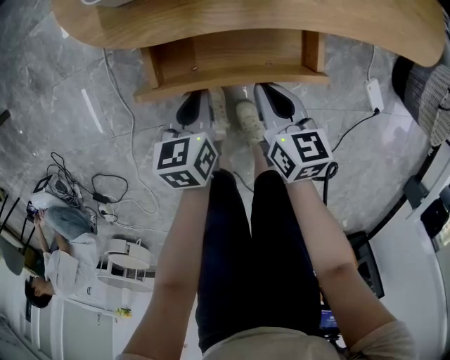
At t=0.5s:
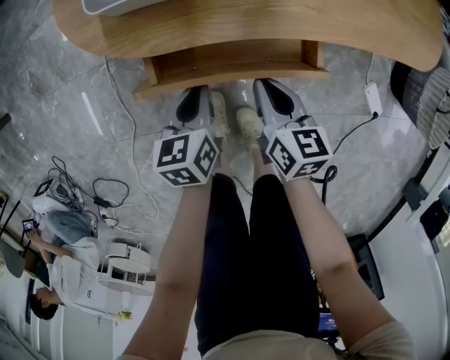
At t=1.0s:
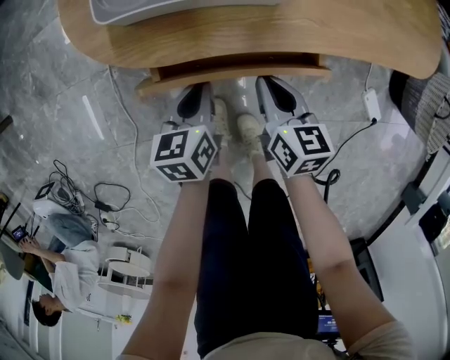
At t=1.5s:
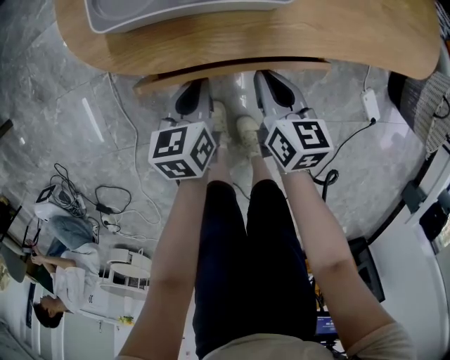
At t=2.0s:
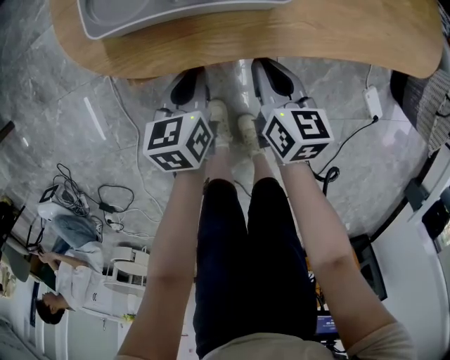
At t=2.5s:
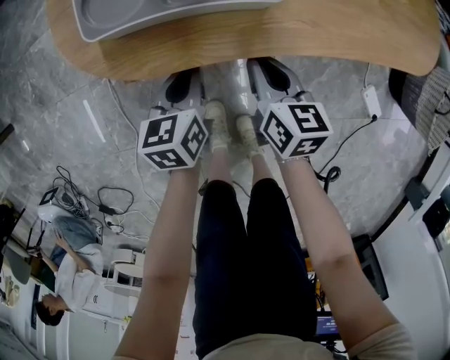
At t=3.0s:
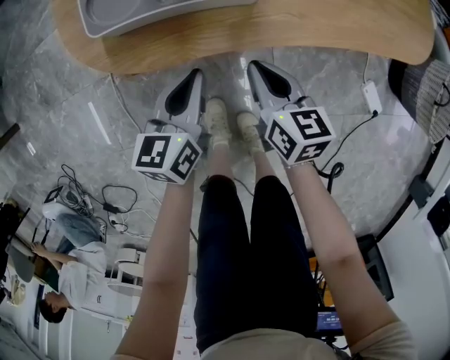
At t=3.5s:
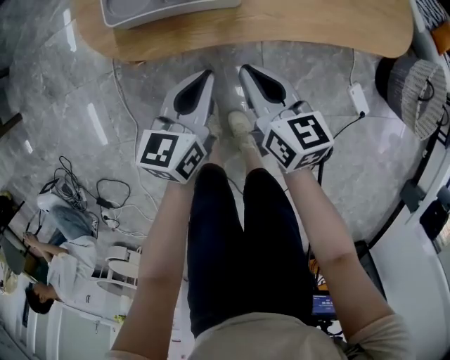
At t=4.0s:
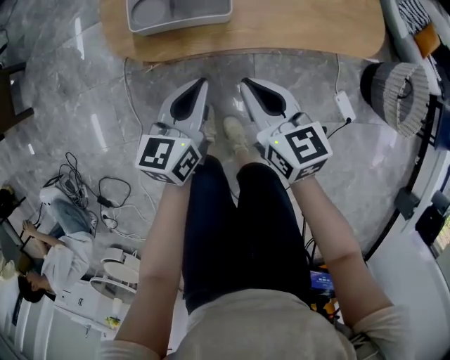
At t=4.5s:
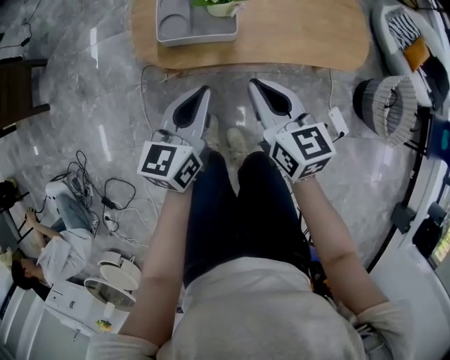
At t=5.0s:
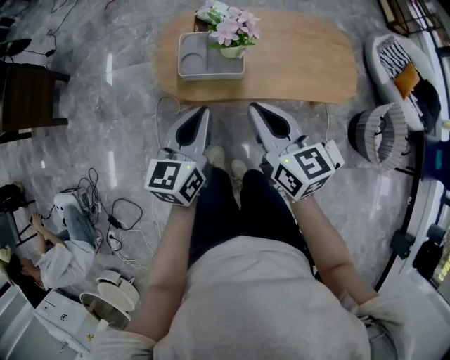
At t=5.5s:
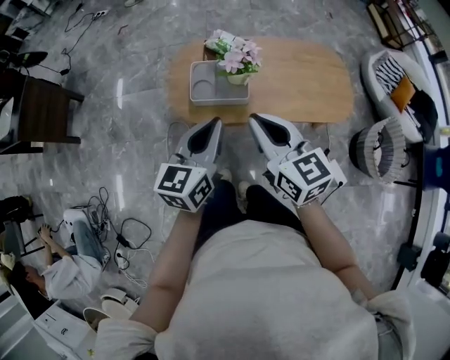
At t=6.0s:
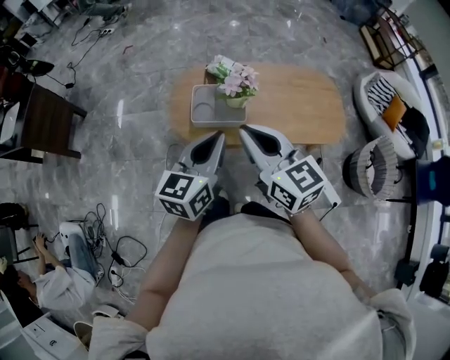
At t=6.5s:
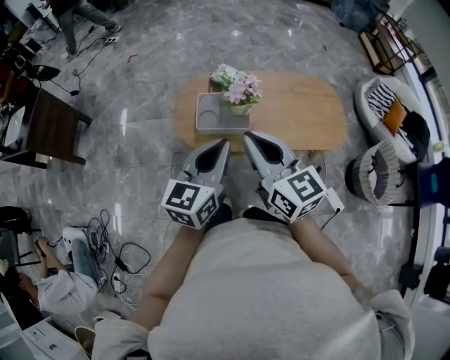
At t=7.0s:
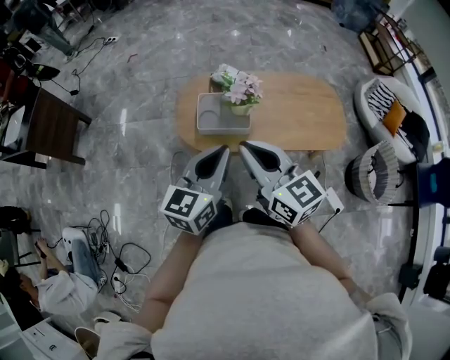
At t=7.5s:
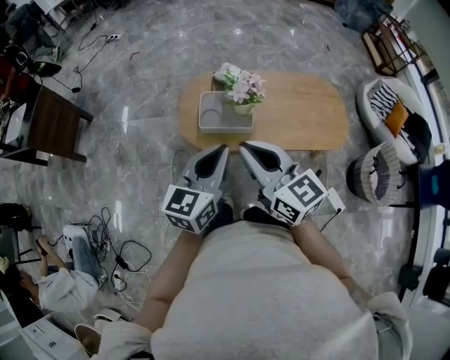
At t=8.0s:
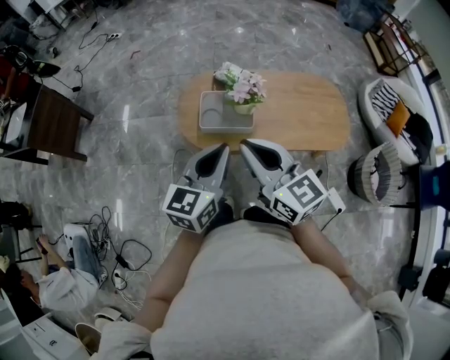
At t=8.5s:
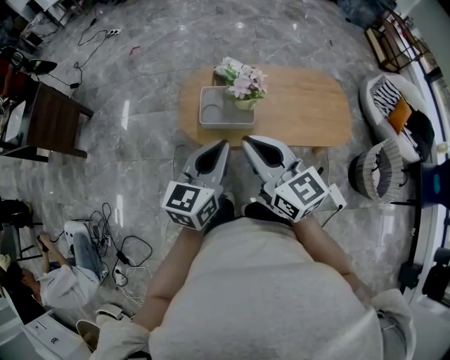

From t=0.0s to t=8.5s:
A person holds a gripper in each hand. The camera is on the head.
From t=0.0s to t=2.0s: The two grippers go about 10 cm forward.
From t=2.0s to t=4.0s: Both grippers move upward, some 25 cm. The left gripper swivels about 20 degrees; the right gripper changes its angle by approximately 20 degrees.
From t=4.0s to t=6.5s: Both grippers move upward, approximately 35 cm. The right gripper turns by some 30 degrees. The left gripper swivels approximately 20 degrees.
From t=6.5s to t=8.5s: The grippers make only small movements.

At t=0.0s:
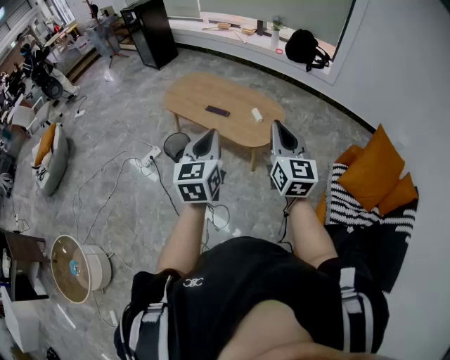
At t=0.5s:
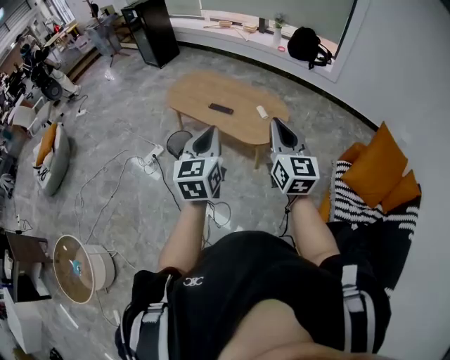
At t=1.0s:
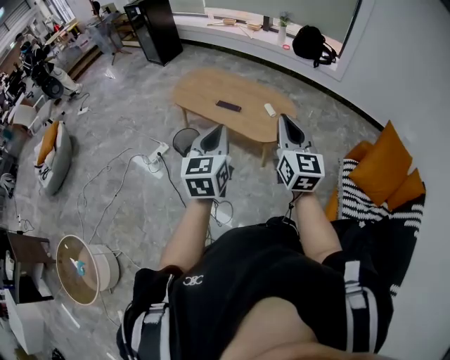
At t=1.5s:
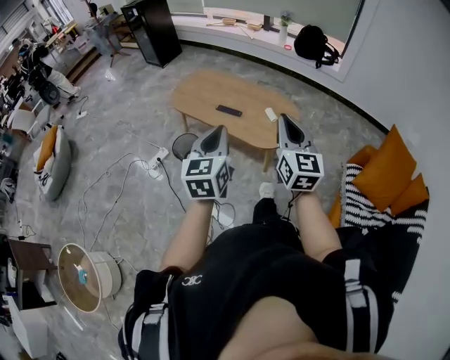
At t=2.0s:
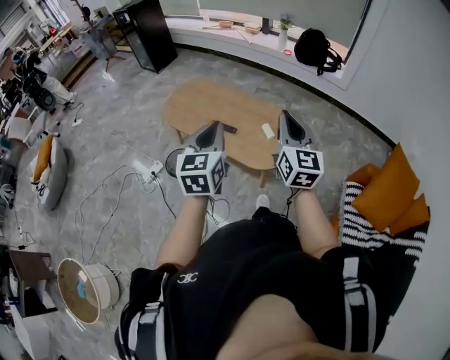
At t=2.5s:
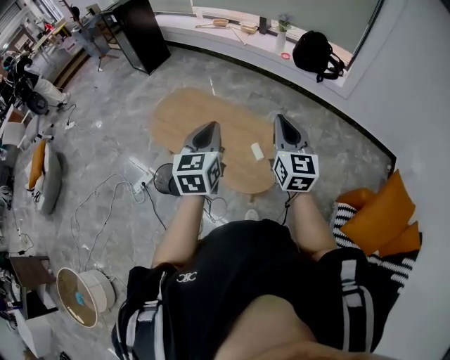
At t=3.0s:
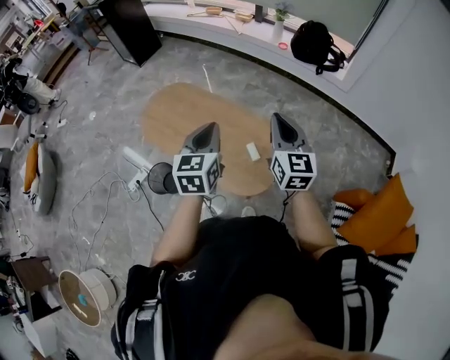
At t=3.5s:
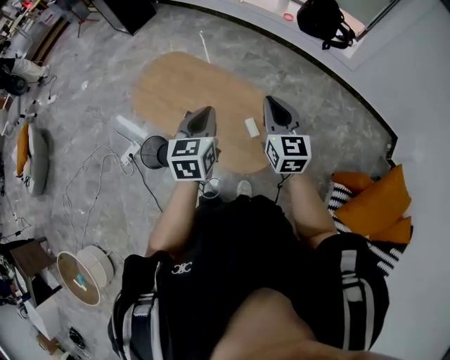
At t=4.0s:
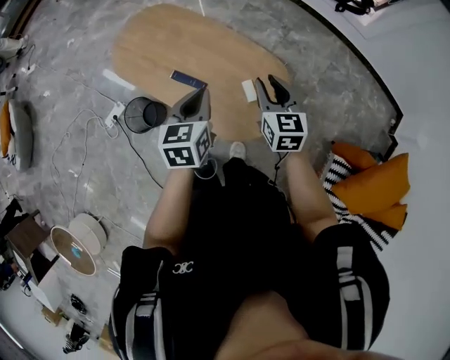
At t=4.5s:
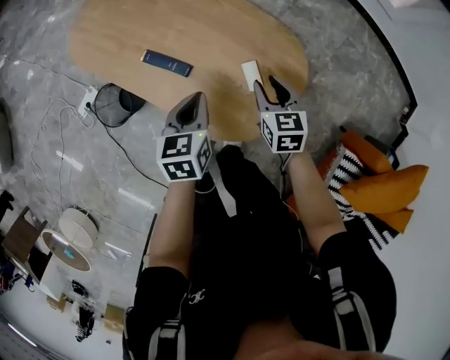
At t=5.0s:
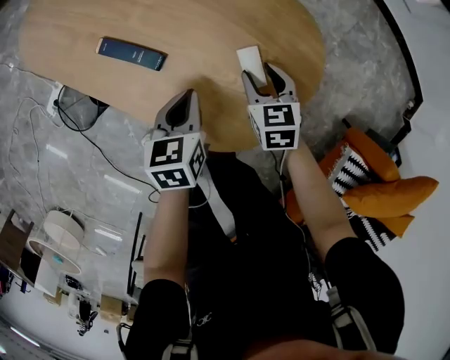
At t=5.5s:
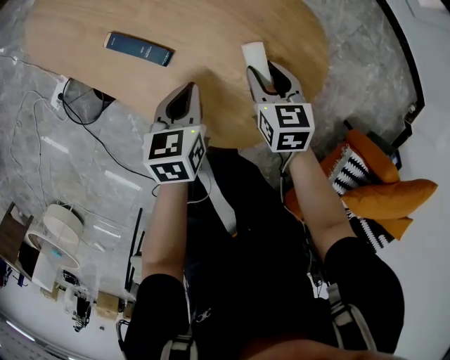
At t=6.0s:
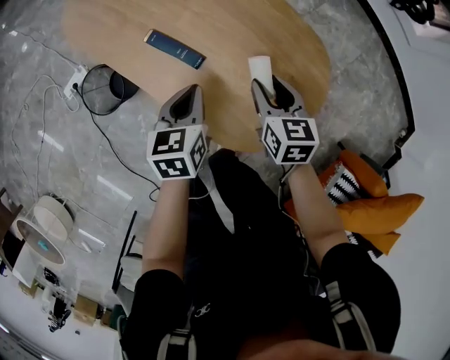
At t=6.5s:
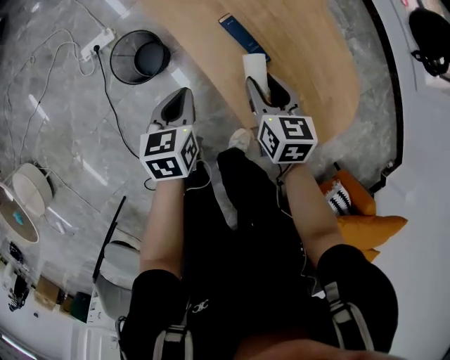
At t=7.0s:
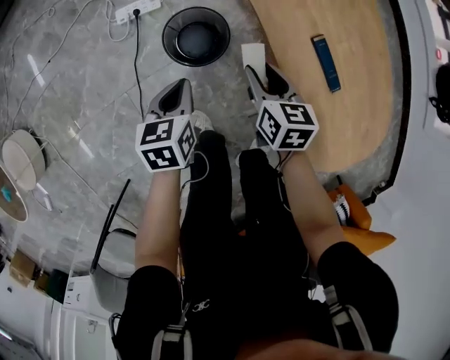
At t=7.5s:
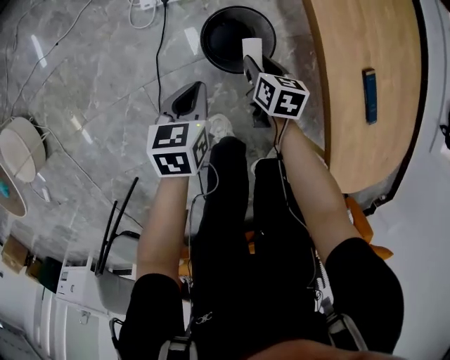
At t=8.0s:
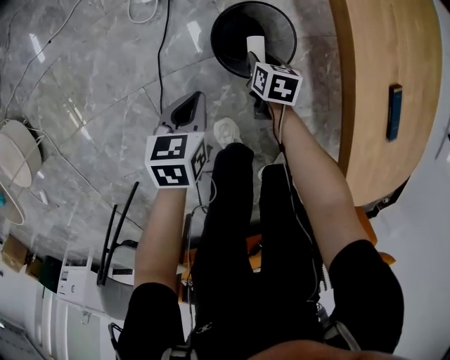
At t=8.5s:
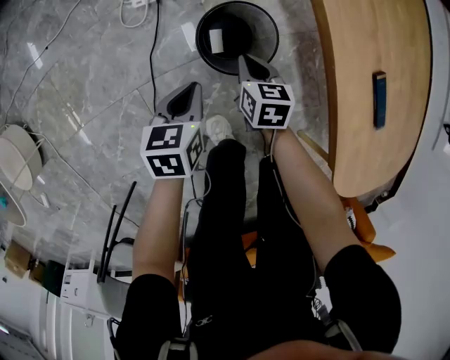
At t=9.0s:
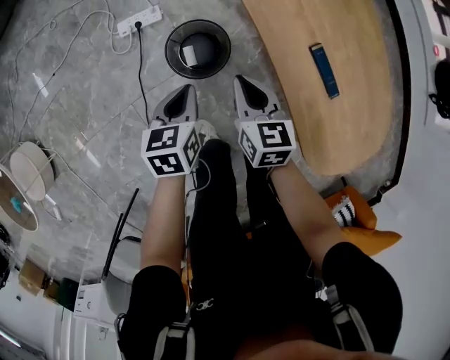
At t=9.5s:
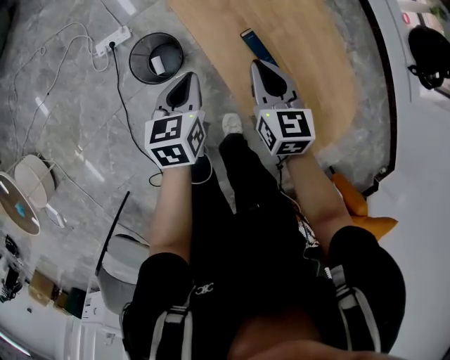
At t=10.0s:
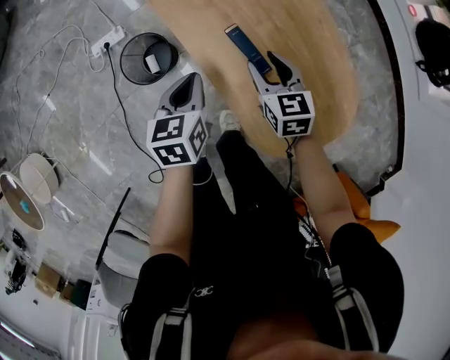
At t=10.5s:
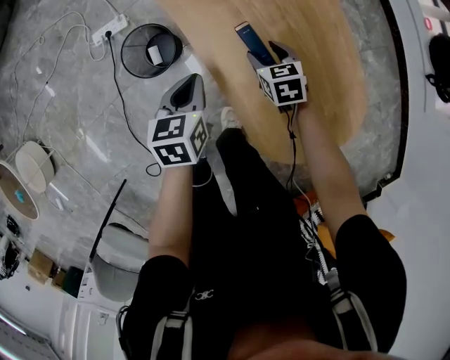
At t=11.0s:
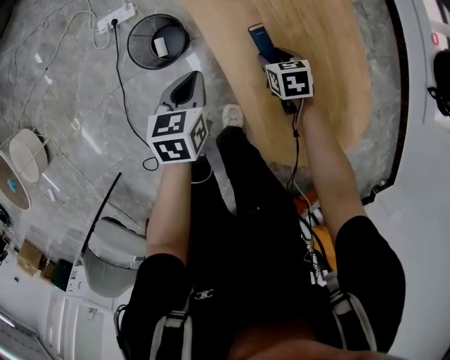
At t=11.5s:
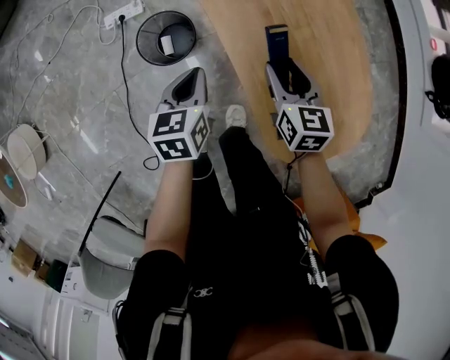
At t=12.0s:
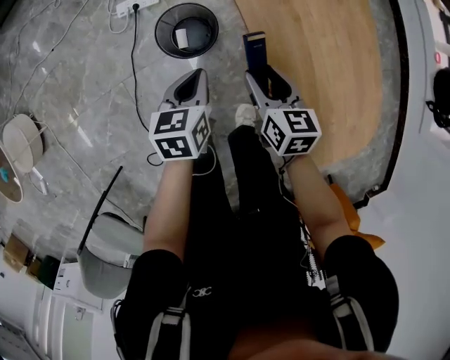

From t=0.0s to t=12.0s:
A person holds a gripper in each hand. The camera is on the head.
From t=0.0s to t=2.0s: Both grippers travel together forward, about 20 cm.
From t=2.0s to t=4.0s: Both grippers move forward and downward, some 40 cm. The left gripper turns by some 30 degrees, while the right gripper swivels some 30 degrees.
From t=4.0s to t=6.0s: The two grippers go about 30 cm downward.
From t=6.0s to t=8.0s: The pair of grippers is taken some 60 cm. The left gripper changes its angle by approximately 30 degrees. Meanwhile the right gripper changes its angle by about 30 degrees.
From t=8.0s to t=10.0s: Both grippers move to the right and upward, about 50 cm. The right gripper swivels approximately 30 degrees, and closes and opens again.
From t=10.0s to t=12.0s: Both grippers travel together to the left, some 15 cm.

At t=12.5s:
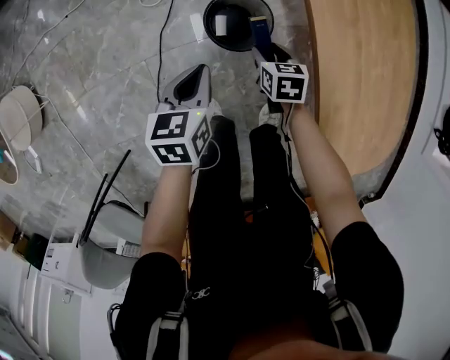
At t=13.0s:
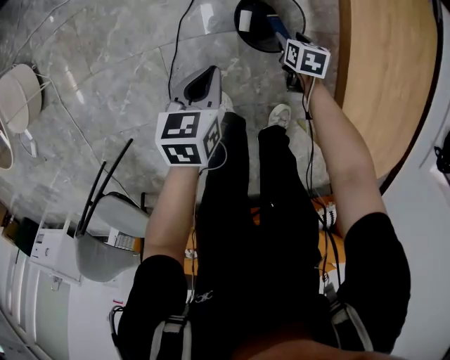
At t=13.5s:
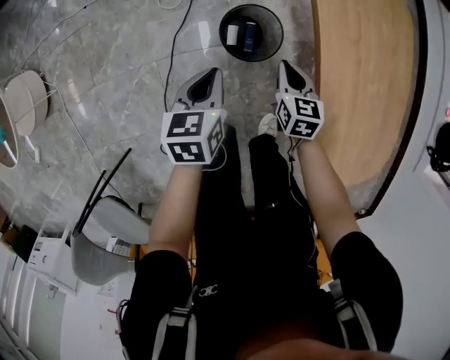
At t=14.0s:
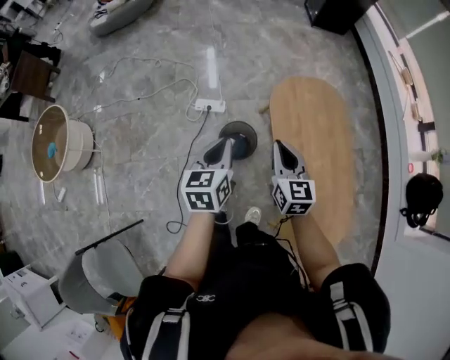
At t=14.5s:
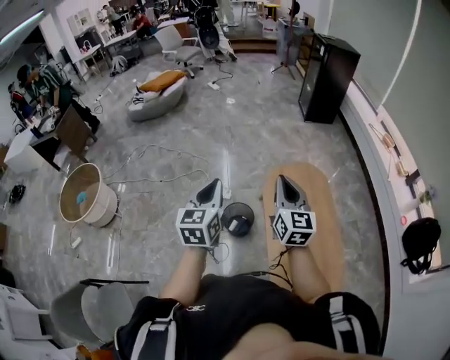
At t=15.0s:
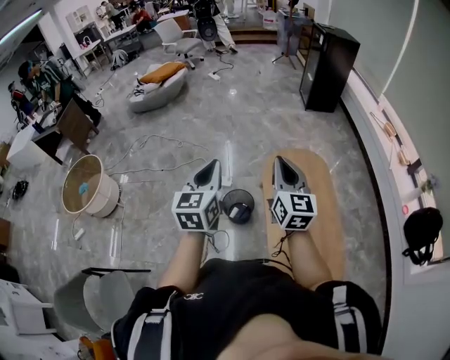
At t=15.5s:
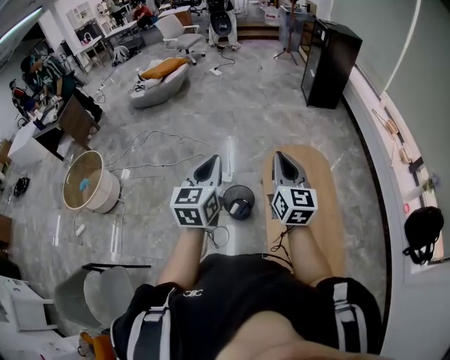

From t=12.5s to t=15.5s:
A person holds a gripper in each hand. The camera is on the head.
From t=12.5s to t=14.0s: Both grippers travel together upward, some 40 cm. The right gripper angles its fingers upward, by approximately 40 degrees, and closes; the left gripper changes its angle by some 20 degrees.
From t=14.0s to t=15.5s: Both grippers move upward, some 25 cm. The left gripper swivels some 30 degrees, while the right gripper changes its angle by roughly 20 degrees.

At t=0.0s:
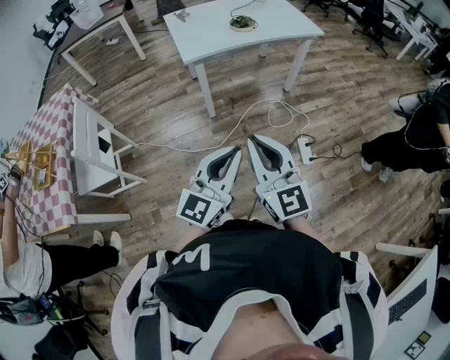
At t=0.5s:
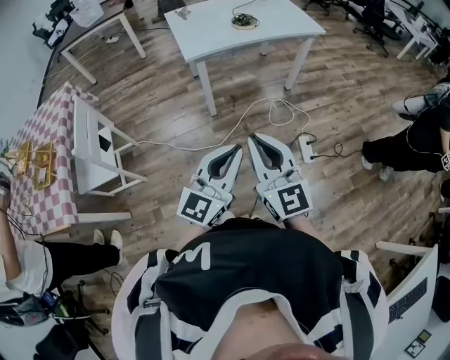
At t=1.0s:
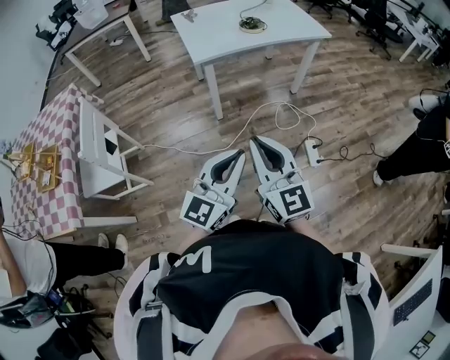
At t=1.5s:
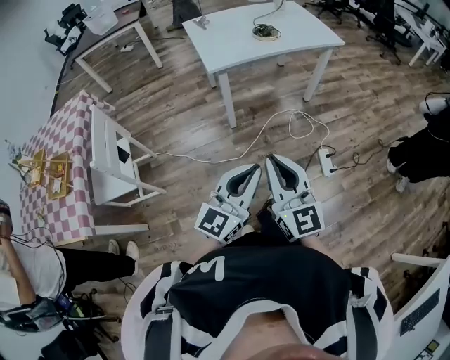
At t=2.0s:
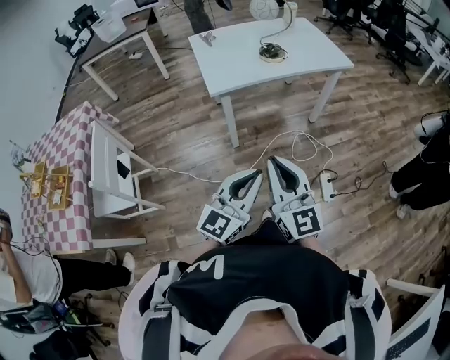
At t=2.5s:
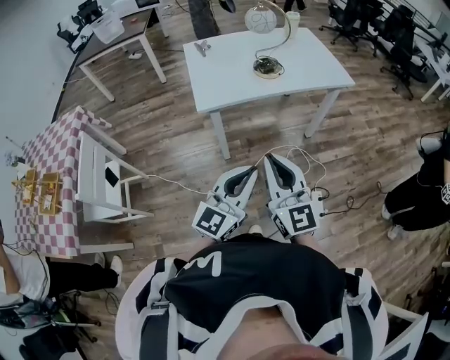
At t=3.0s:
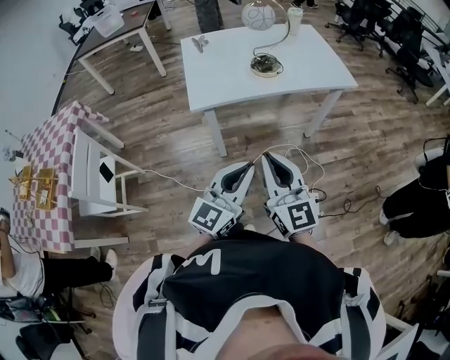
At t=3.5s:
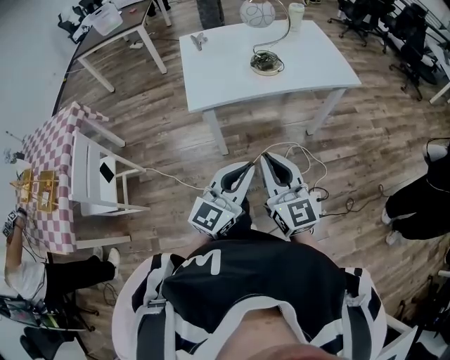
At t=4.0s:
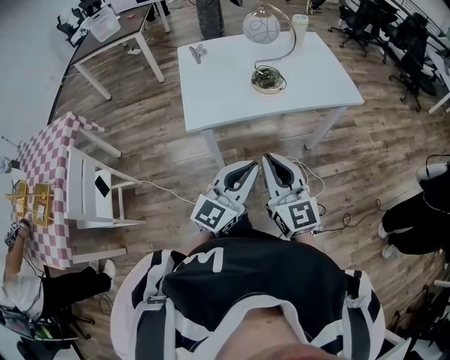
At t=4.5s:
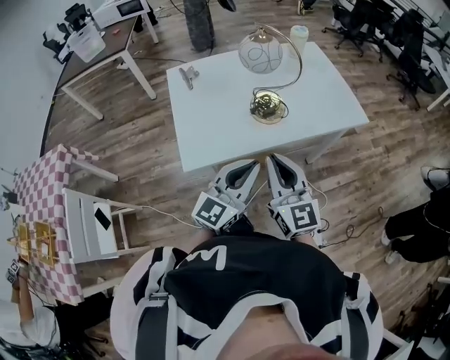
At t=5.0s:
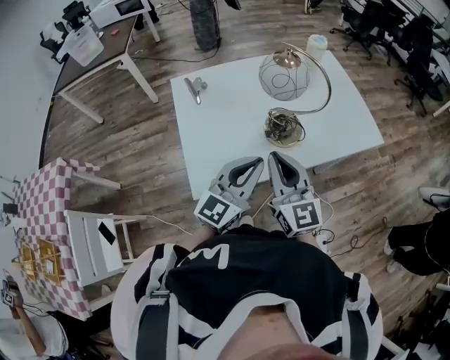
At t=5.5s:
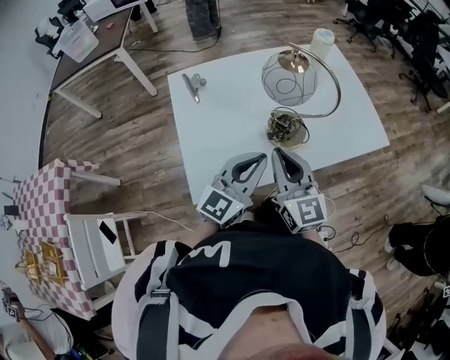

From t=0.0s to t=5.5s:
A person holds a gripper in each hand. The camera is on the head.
From t=0.0s to t=2.0s: Both grippers move forward, some 10 cm.
From t=2.0s to t=3.5s: Both grippers travel together forward and to the right, approximately 20 cm.
From t=3.5s to t=5.5s: The grippers both shift forward by approximately 40 cm.
